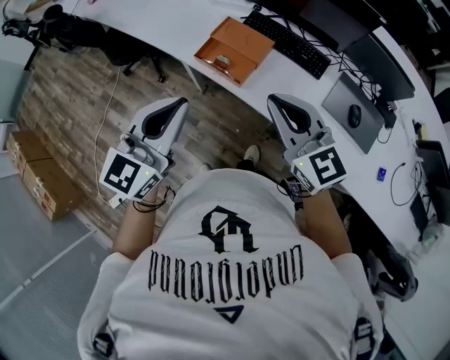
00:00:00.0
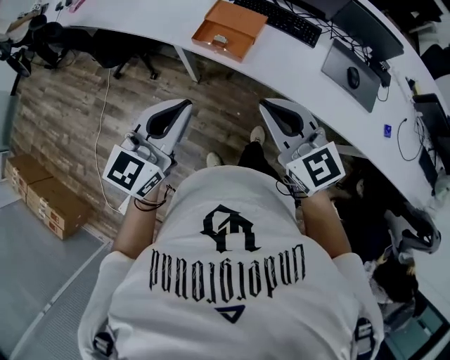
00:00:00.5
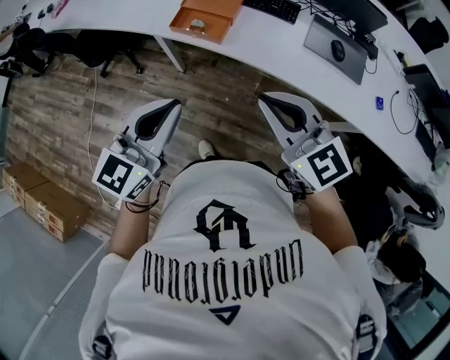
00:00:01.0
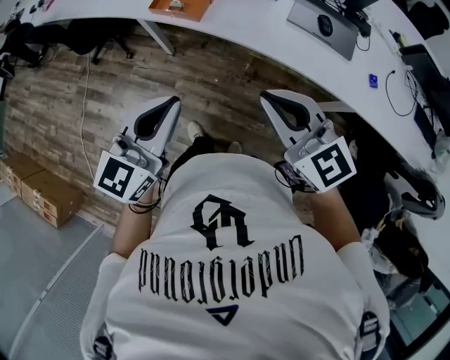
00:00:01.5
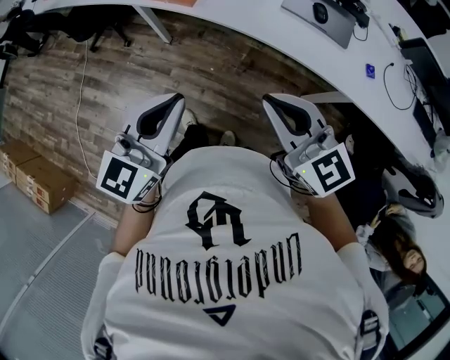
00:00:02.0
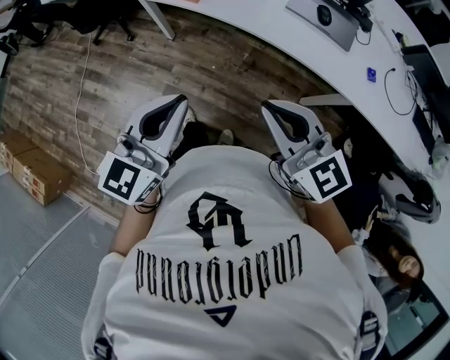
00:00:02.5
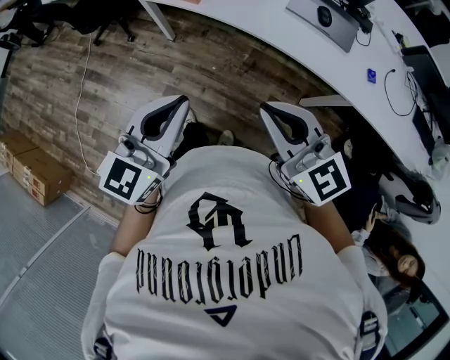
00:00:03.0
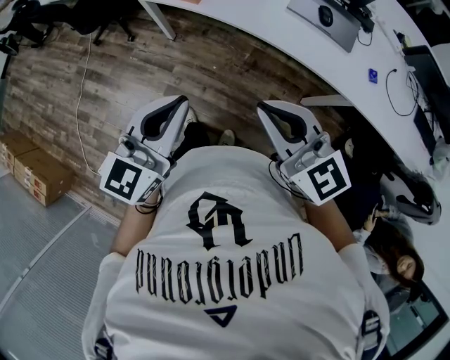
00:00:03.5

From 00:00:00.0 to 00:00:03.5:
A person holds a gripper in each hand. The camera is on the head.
From 00:00:00.0 to 00:00:02.0: The right gripper goes about 30 cm backward; the left gripper is displaced backward and to the right by about 30 cm.
From 00:00:02.0 to 00:00:03.5: The grippers make only small movements.

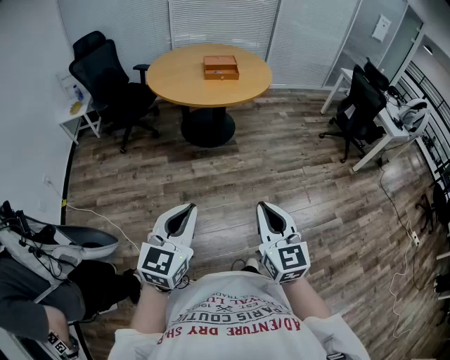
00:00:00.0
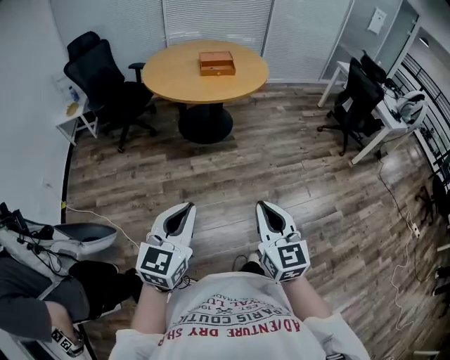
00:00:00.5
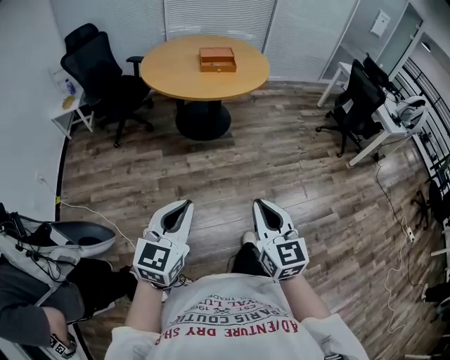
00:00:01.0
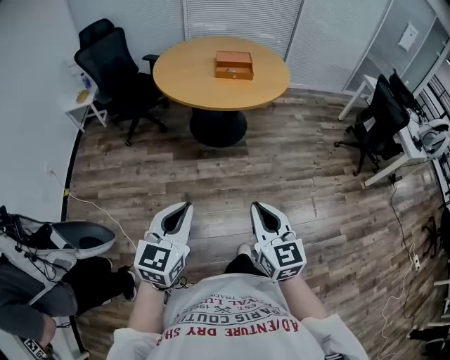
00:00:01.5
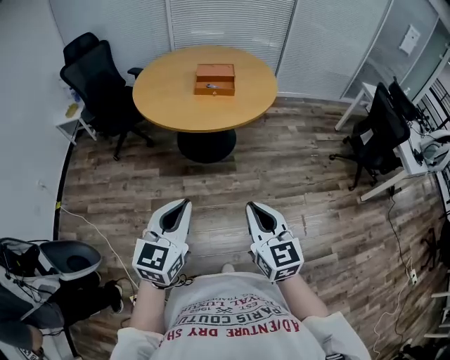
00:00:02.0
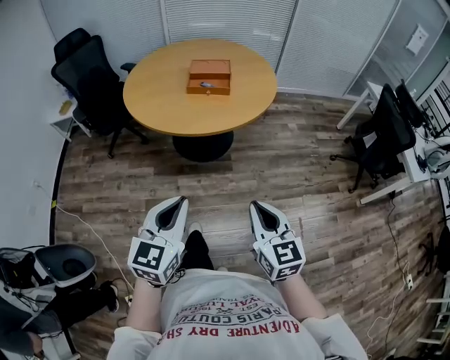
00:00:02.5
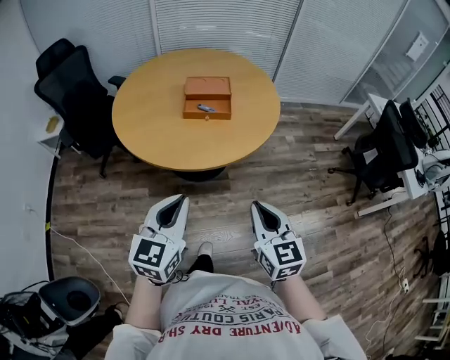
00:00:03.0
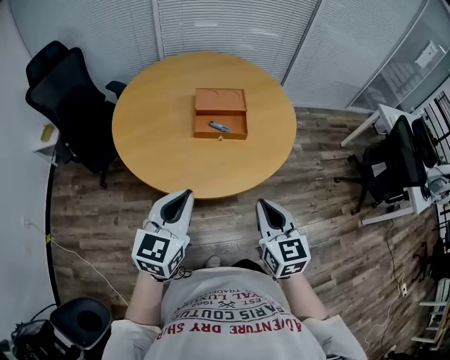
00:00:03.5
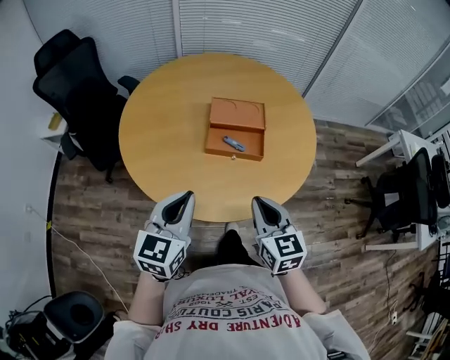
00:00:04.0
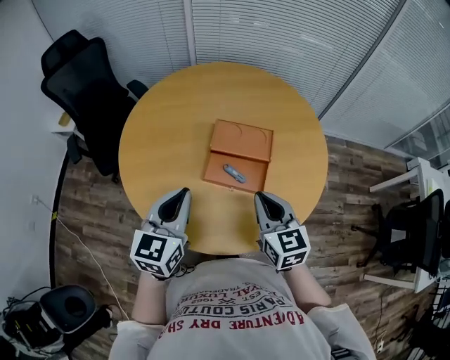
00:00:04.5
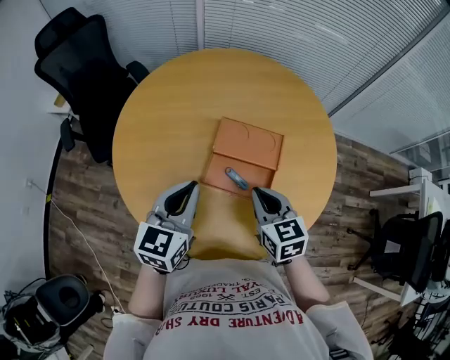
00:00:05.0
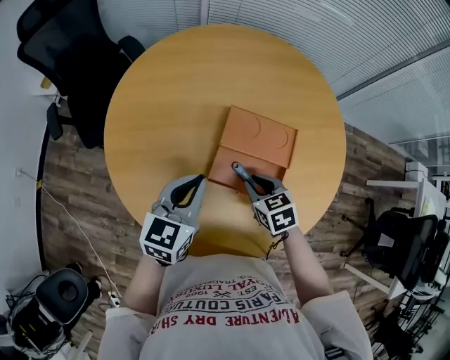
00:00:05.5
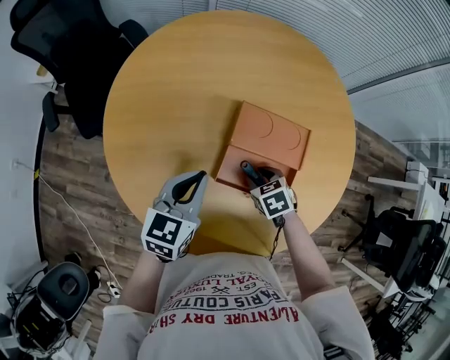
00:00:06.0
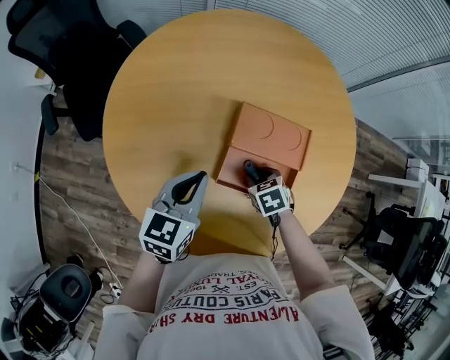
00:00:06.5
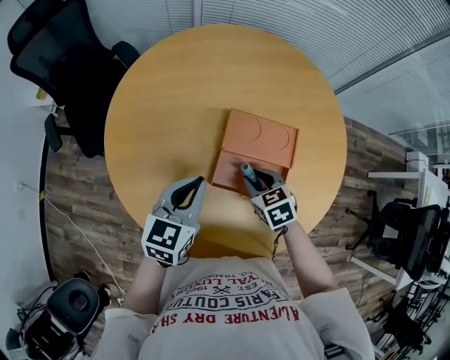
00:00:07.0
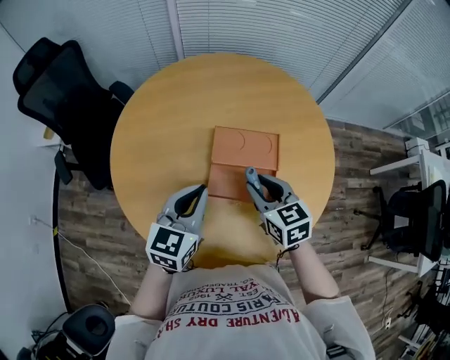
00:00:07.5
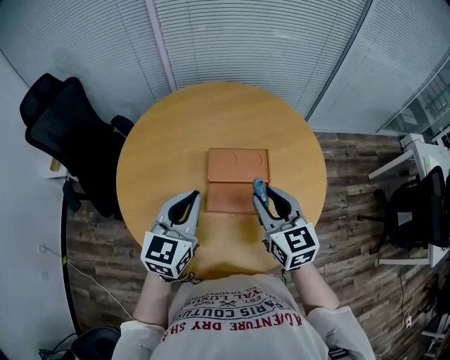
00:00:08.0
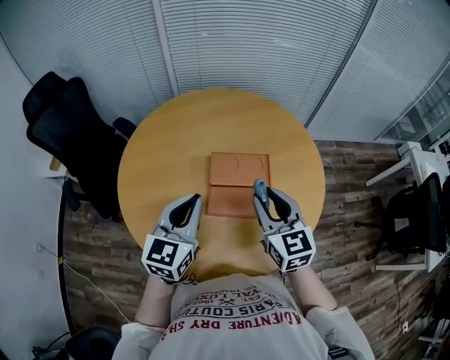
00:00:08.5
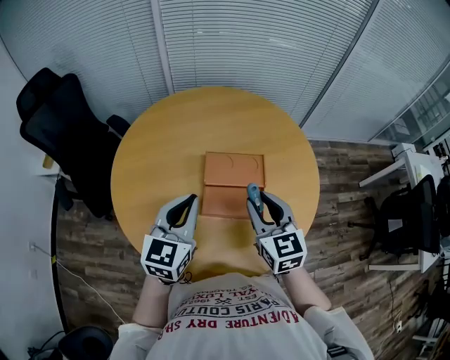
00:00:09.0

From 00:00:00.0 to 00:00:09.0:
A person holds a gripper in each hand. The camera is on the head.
From 00:00:00.0 to 00:00:02.0: The left gripper shifts some 30 cm forward and to the right. Meanwhile the right gripper moves forward, about 30 cm.
From 00:00:02.0 to 00:00:04.5: The pair of grippers is taken forward, approximately 70 cm.
From 00:00:04.5 to 00:00:07.0: The left gripper shifts roughly 15 cm forward and downward. Meanwhile the right gripper goes about 25 cm downward and forward, tilts its fingers some 30 degrees downward, and opens its fingers.
From 00:00:07.0 to 00:00:09.0: The left gripper shifts some 10 cm upward; the right gripper heads upward, covering approximately 20 cm, and tilts its fingers approximately 40 degrees upward.

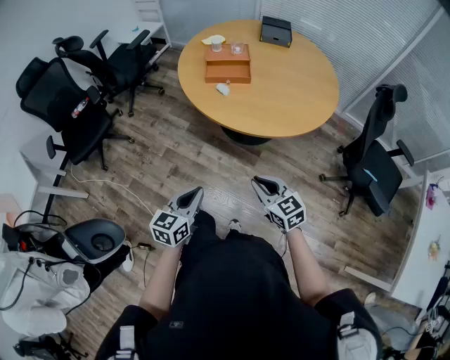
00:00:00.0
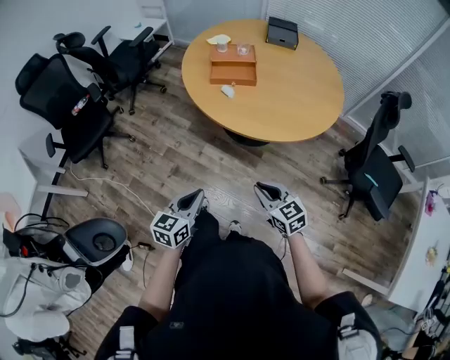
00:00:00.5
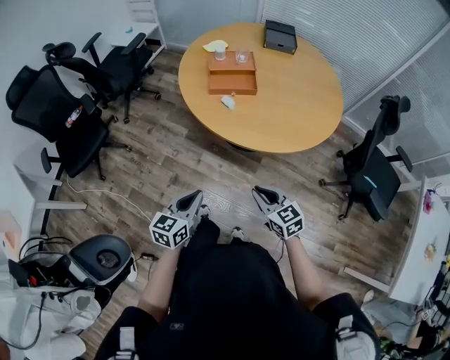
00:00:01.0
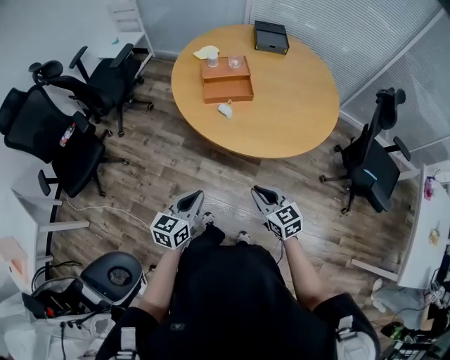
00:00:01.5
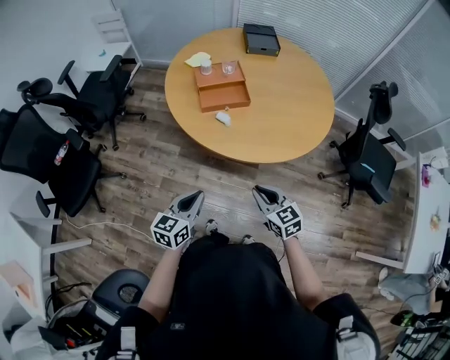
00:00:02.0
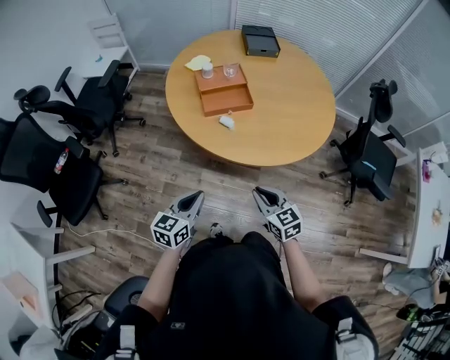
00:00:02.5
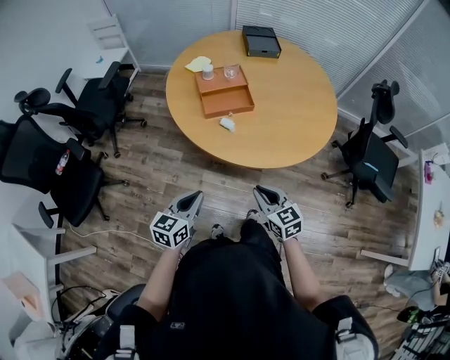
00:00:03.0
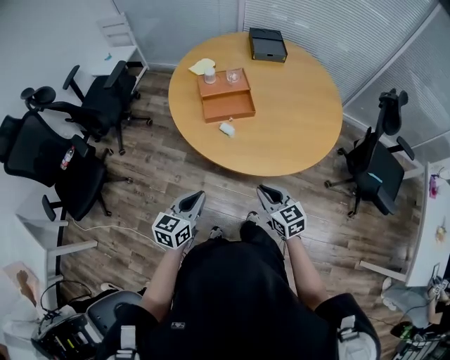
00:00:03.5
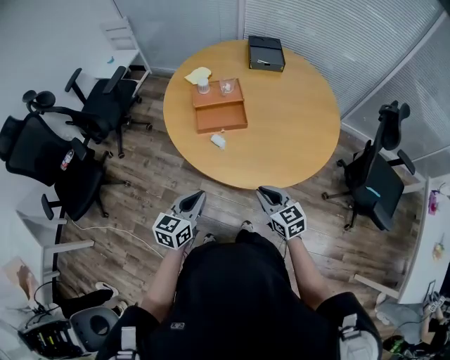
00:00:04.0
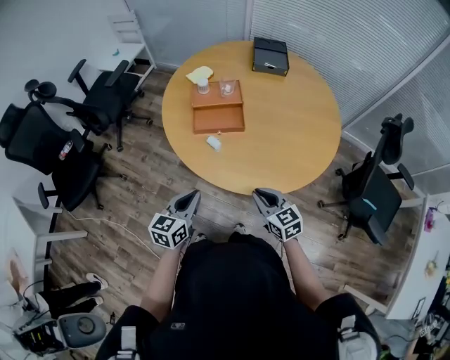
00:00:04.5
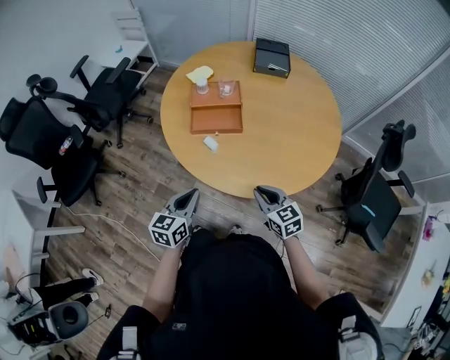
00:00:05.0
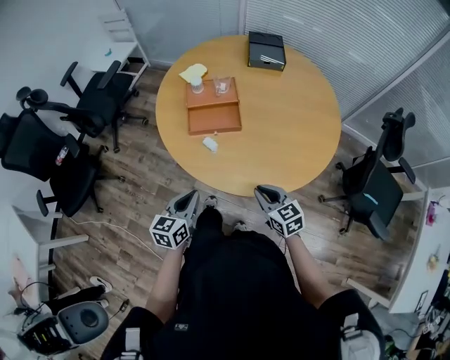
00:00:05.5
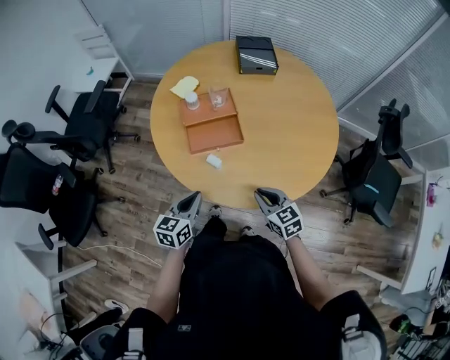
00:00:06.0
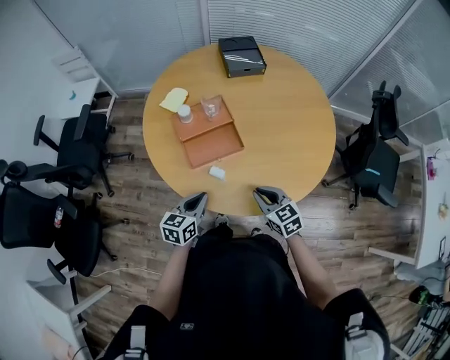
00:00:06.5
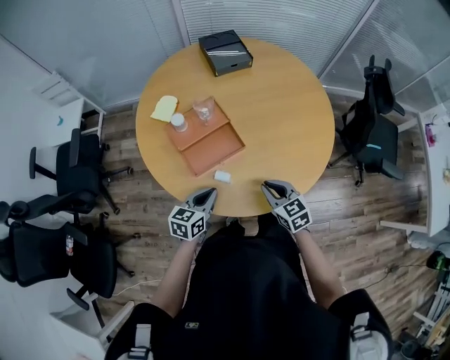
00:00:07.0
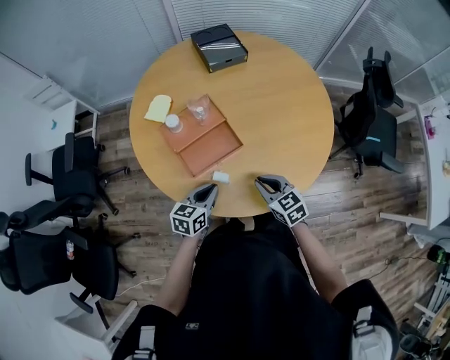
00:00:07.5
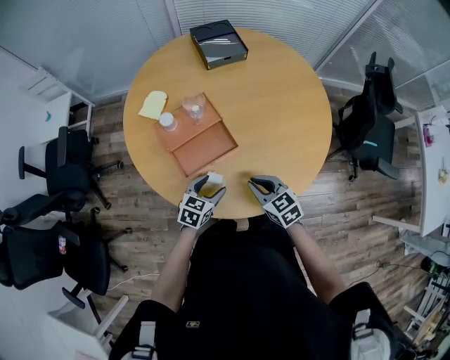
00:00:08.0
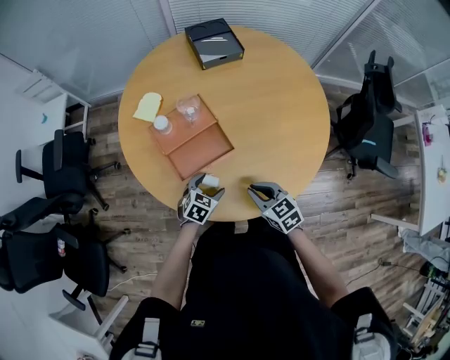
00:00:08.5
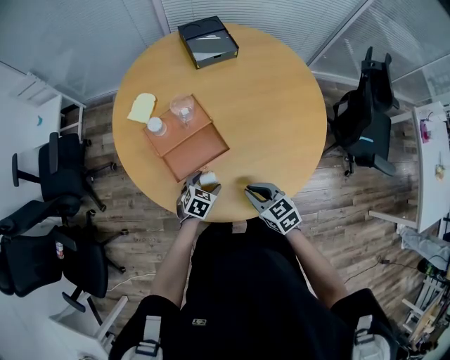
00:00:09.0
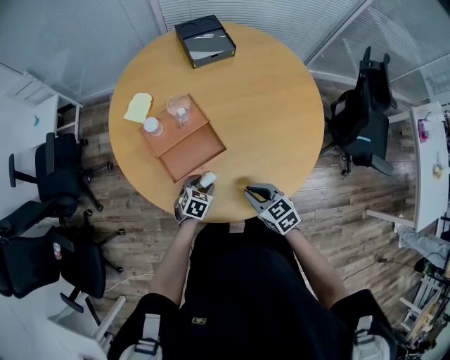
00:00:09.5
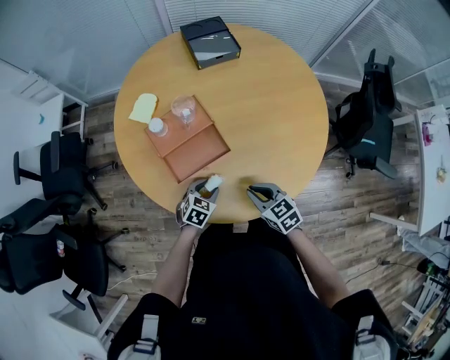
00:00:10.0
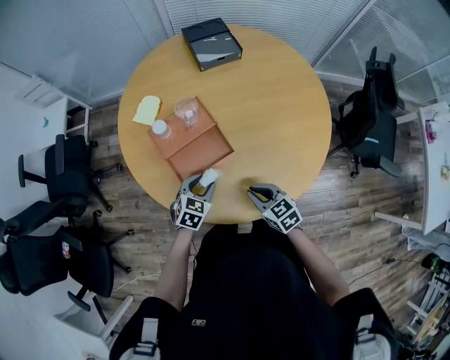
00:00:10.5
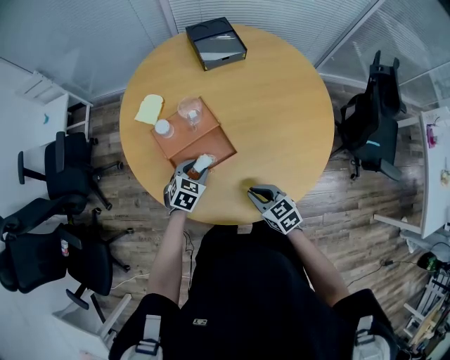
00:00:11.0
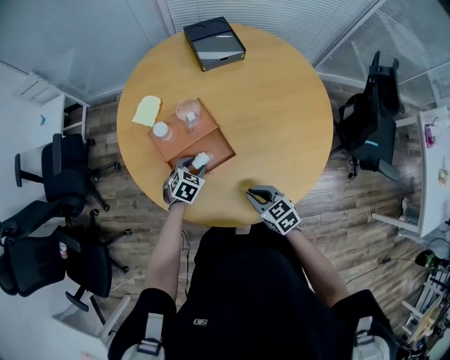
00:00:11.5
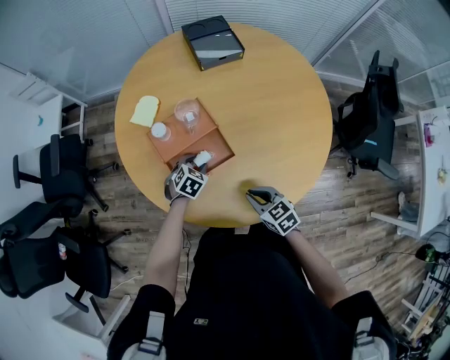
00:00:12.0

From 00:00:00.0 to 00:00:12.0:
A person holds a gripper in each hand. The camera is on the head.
From 00:00:00.0 to 00:00:02.0: Both grippers move forward and to the left, roughly 20 cm.
From 00:00:02.0 to 00:00:04.0: The grippers both shift forward and to the right by roughly 10 cm.
From 00:00:04.0 to 00:00:06.0: The two grippers go roughly 10 cm forward.
From 00:00:06.0 to 00:00:08.0: The right gripper heads forward and to the left, covering about 10 cm. Meanwhile the left gripper goes about 20 cm forward and downward, turns by roughly 40 degrees, and opens its fingers.
From 00:00:10.0 to 00:00:12.0: The left gripper heads forward, covering approximately 10 cm.

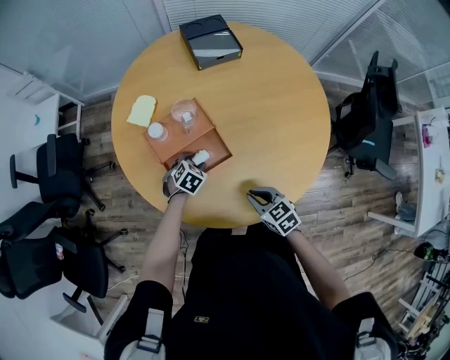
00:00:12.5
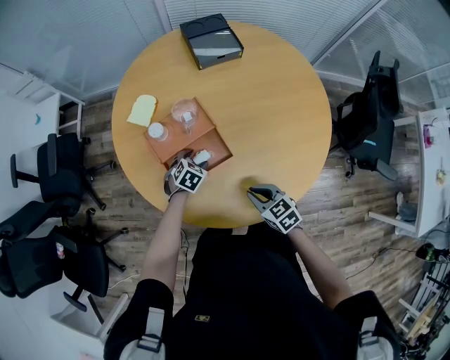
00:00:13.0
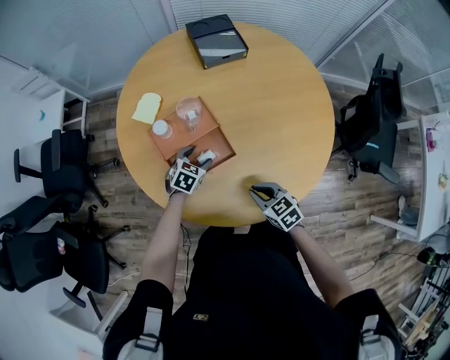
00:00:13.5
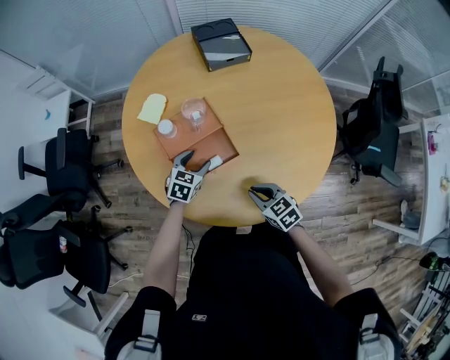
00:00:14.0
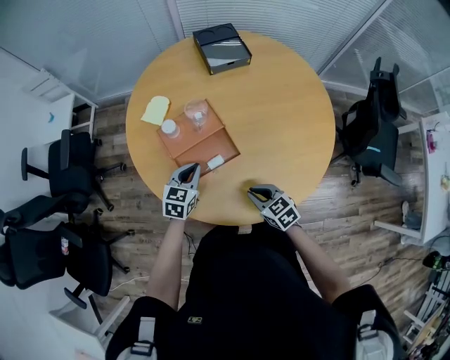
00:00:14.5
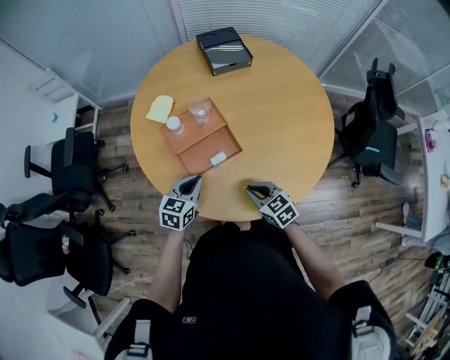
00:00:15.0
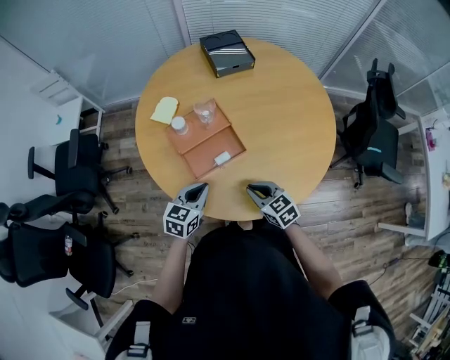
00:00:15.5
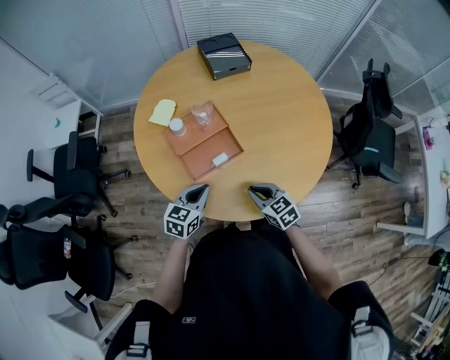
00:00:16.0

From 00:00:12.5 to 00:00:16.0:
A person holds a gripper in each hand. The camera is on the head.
From 00:00:12.5 to 00:00:14.5: The left gripper heads upward, covering approximately 10 cm, swivels some 40 degrees, and closes.
From 00:00:14.5 to 00:00:16.0: The left gripper moves backward, some 10 cm.
